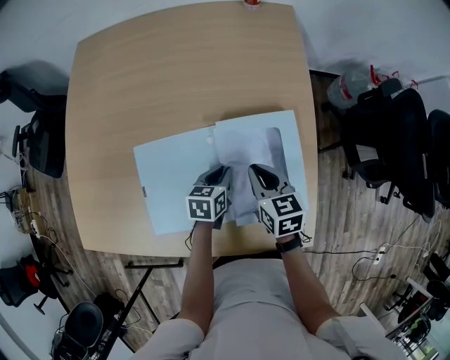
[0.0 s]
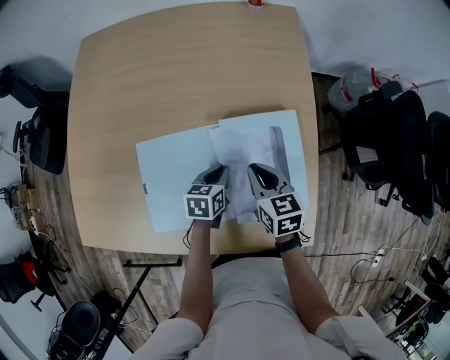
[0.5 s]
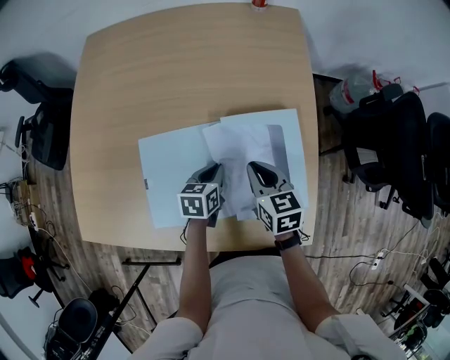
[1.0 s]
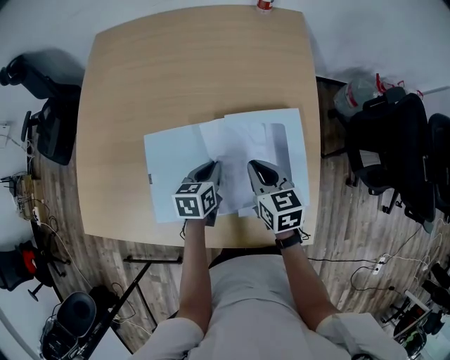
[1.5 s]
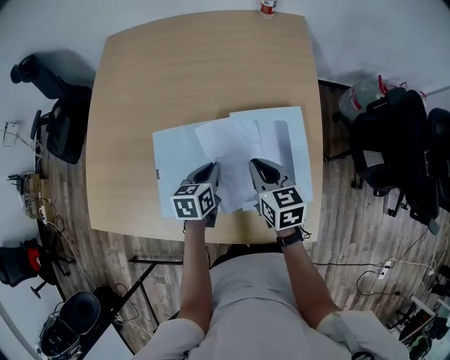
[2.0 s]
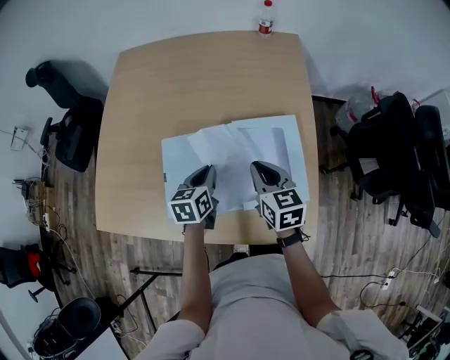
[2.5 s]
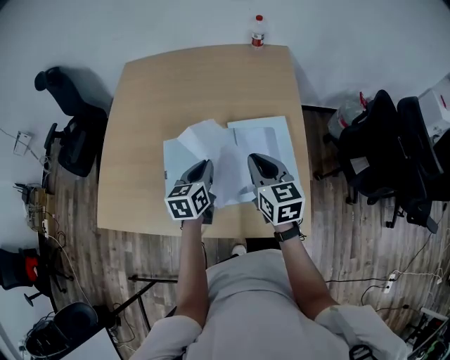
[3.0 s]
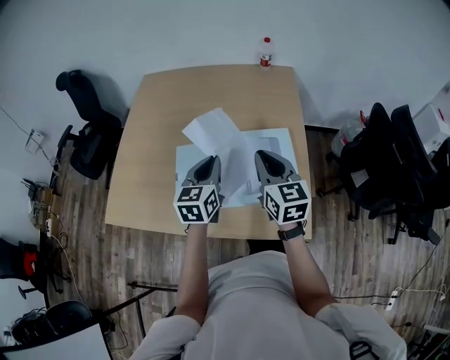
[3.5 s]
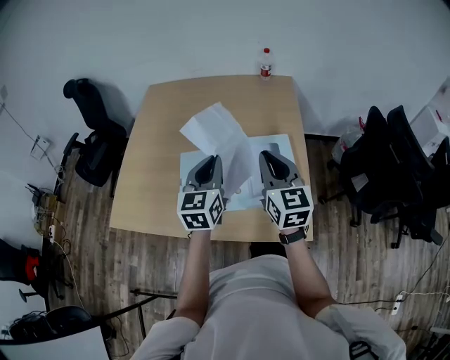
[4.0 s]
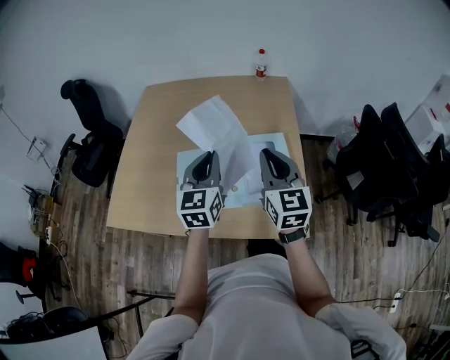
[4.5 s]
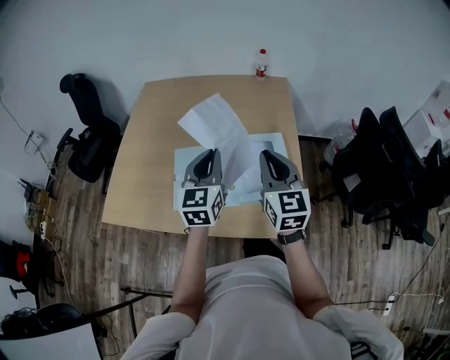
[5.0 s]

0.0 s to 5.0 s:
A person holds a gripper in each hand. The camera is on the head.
0.0 to 2.5 s: The left gripper heads upward and to the left, covering approximately 15 cm; the right gripper travels upward by approximately 10 cm.
2.5 to 5.0 s: The left gripper is displaced upward by approximately 25 cm, and points its fingers some 30 degrees further upward, while the right gripper travels upward and backward by roughly 20 cm, and rotates approximately 30 degrees.

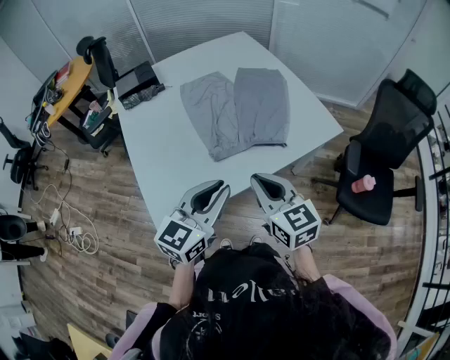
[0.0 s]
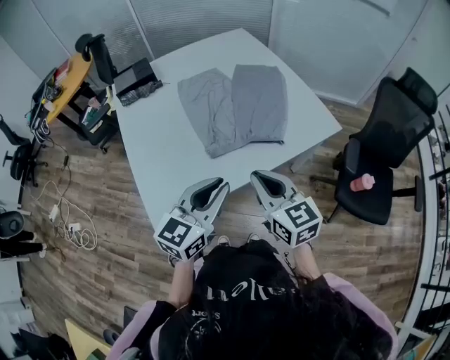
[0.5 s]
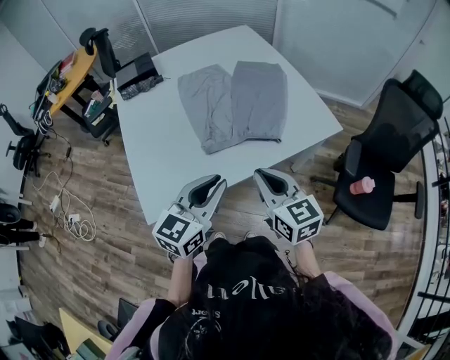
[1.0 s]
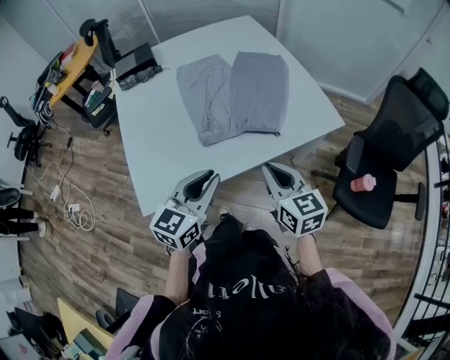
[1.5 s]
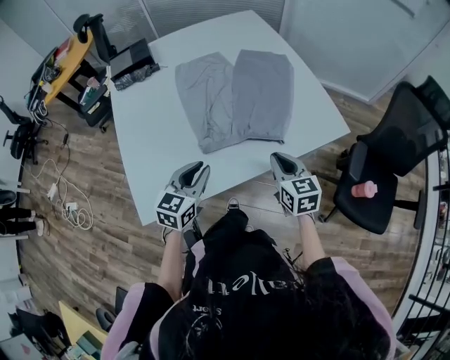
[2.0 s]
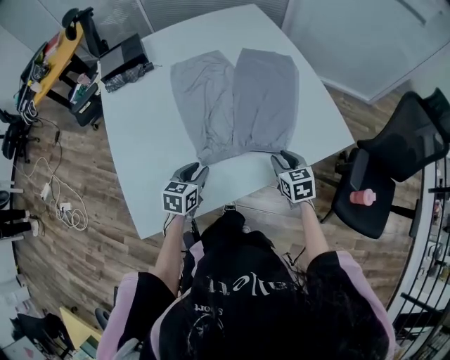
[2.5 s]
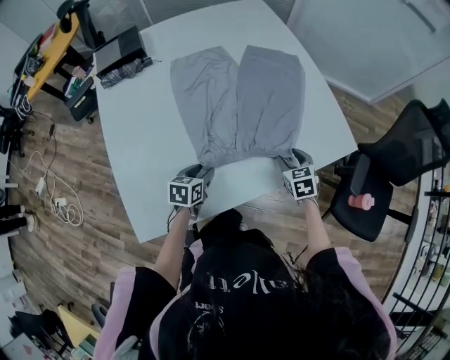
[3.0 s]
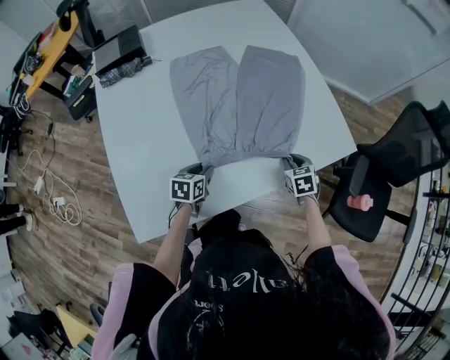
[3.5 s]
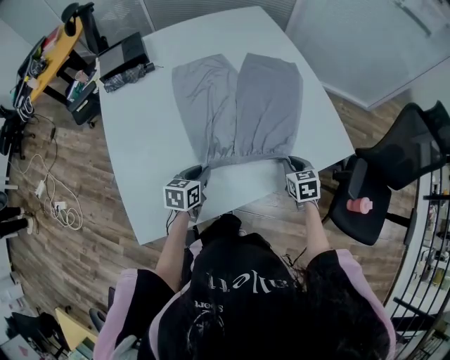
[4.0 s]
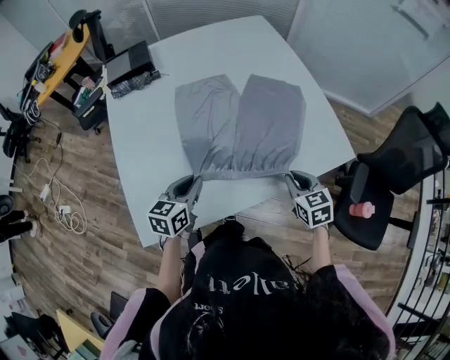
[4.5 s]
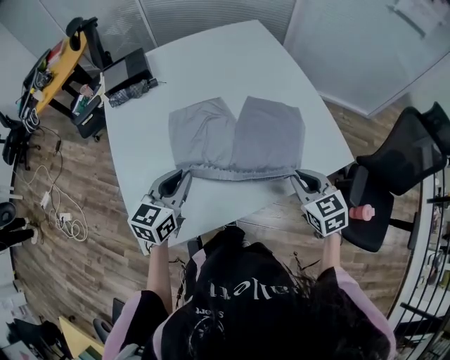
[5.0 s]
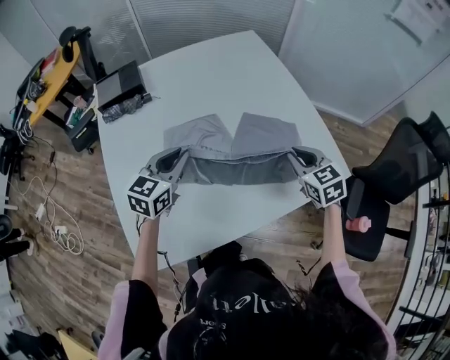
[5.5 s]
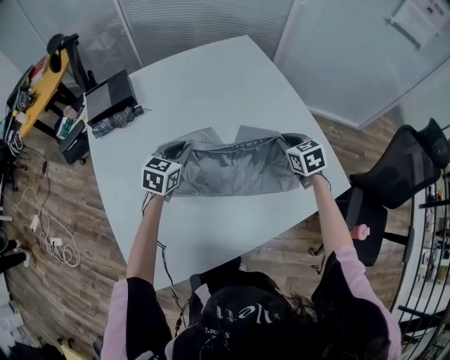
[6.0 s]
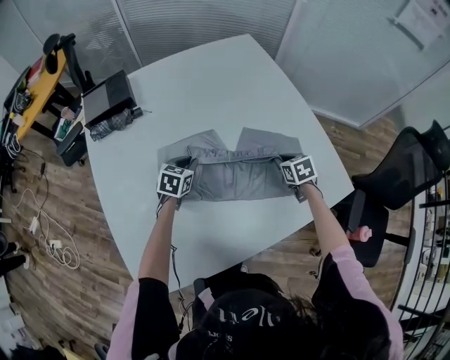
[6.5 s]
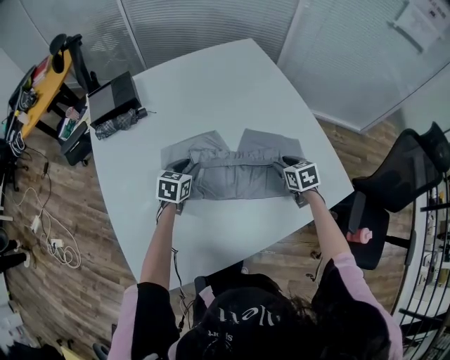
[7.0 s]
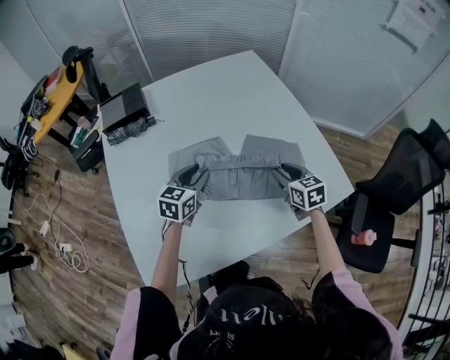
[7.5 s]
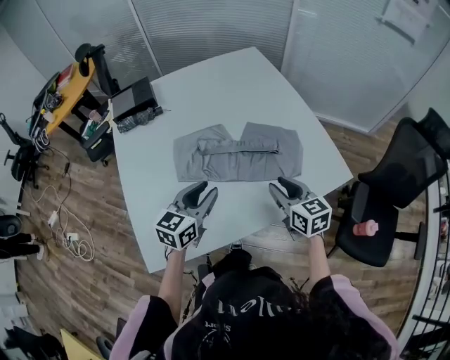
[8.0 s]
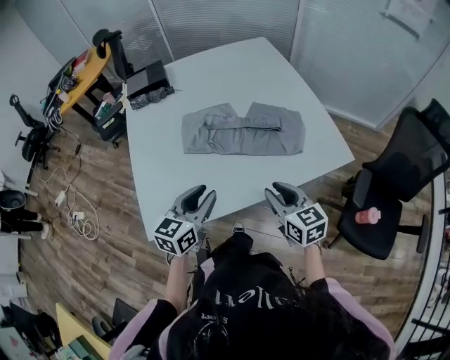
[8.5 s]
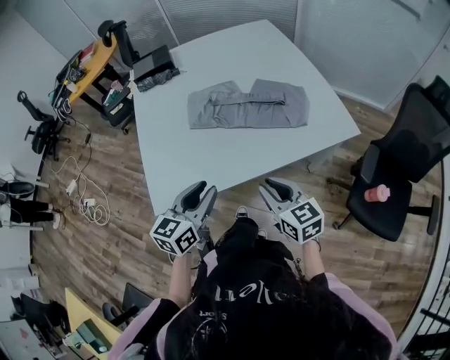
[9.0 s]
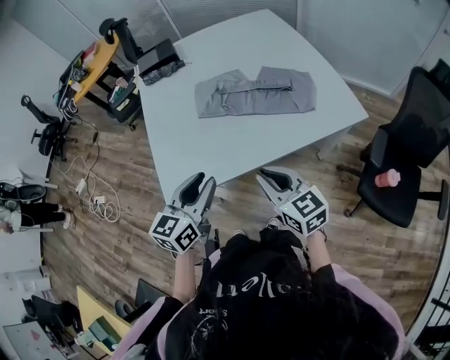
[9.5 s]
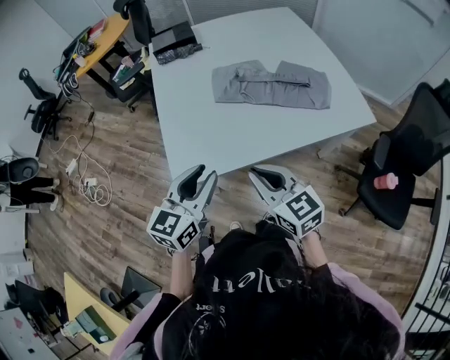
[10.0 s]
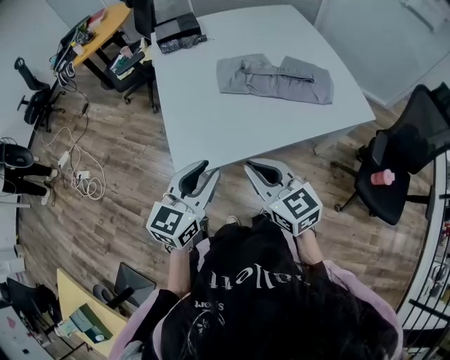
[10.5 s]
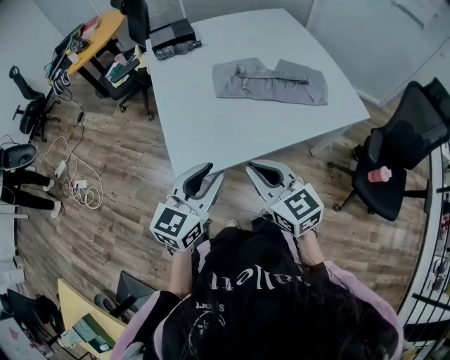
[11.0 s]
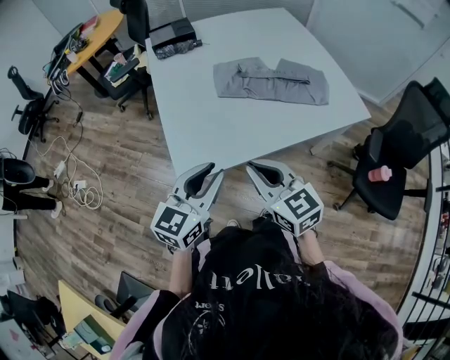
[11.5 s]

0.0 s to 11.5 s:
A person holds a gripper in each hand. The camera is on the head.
0.0 to 2.0 s: The right gripper heads downward, forward and to the right, covering about 20 cm; the left gripper goes some 15 cm downward and forward.
2.0 to 4.0 s: Both grippers travel together downward and forward, roughly 15 cm. The right gripper rotates some 20 degrees, and opens, then closes once more. The left gripper changes its angle by approximately 30 degrees, and opens and closes again.
4.0 to 6.0 s: Both grippers travel together forward, about 20 cm. The left gripper changes its angle by about 30 degrees.
6.0 to 7.5 s: Both grippers move backward, some 10 cm. The left gripper reaches roughly 10 cm downward, then returns, and opens. The right gripper moves about 10 cm downward and comes back, and opens its fingers.
7.5 to 9.5 s: Both grippers move backward, roughly 35 cm. The right gripper rotates some 30 degrees, and closes its fingers.
9.5 to 11.5 s: The left gripper heads to the left, covering roughly 10 cm. The right gripper heads to the left, covering approximately 15 cm.

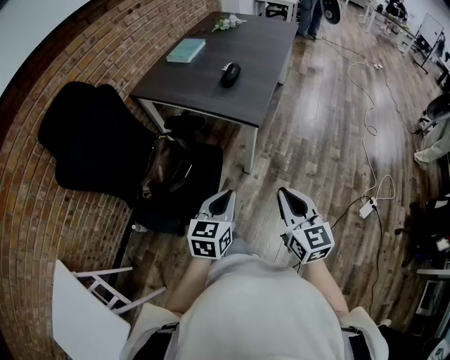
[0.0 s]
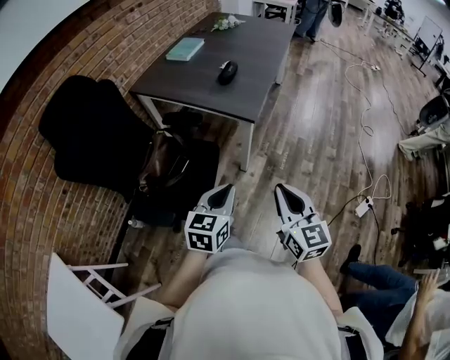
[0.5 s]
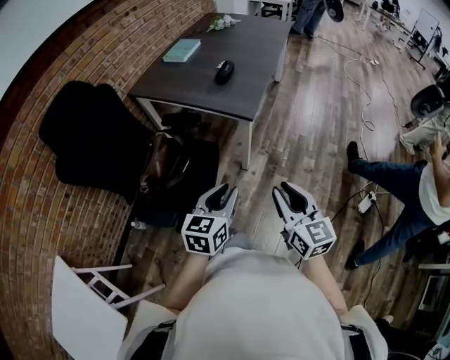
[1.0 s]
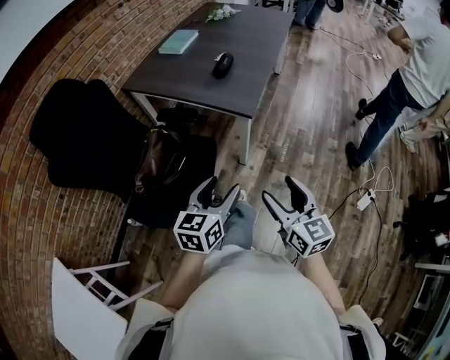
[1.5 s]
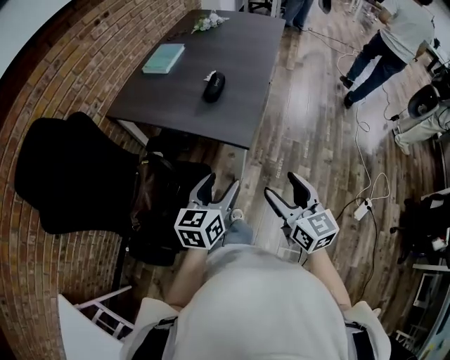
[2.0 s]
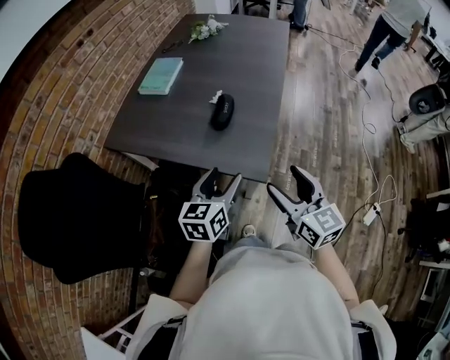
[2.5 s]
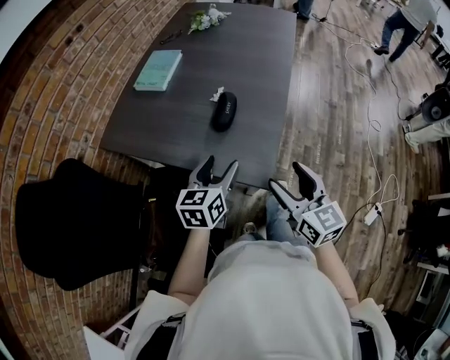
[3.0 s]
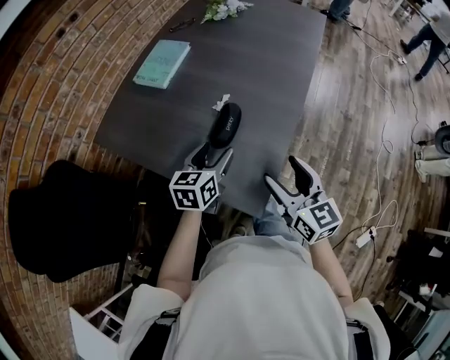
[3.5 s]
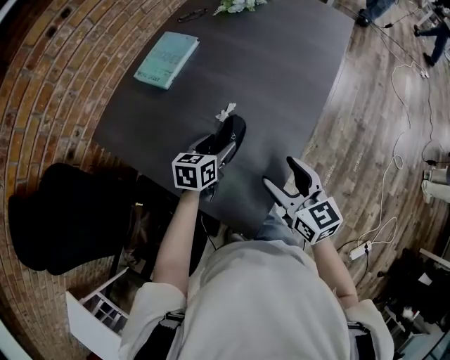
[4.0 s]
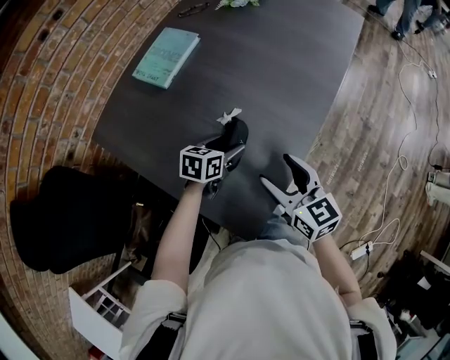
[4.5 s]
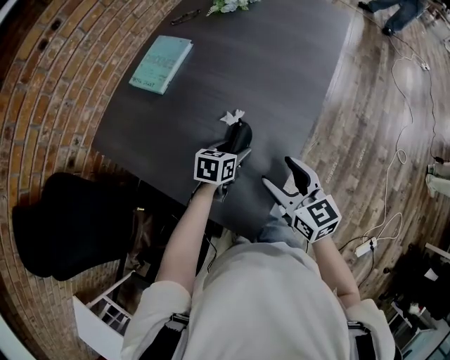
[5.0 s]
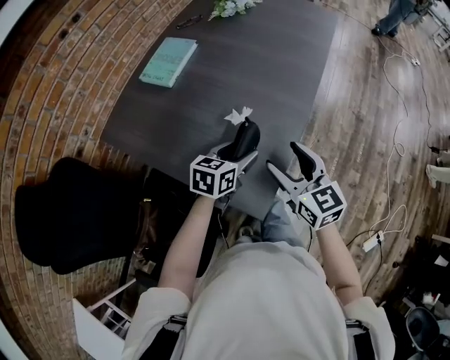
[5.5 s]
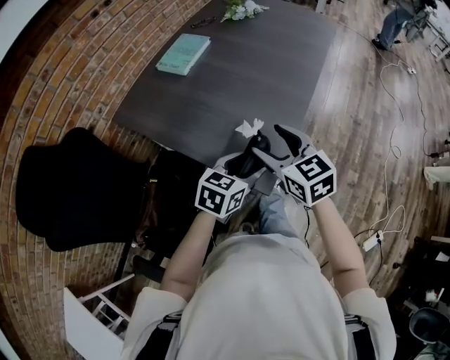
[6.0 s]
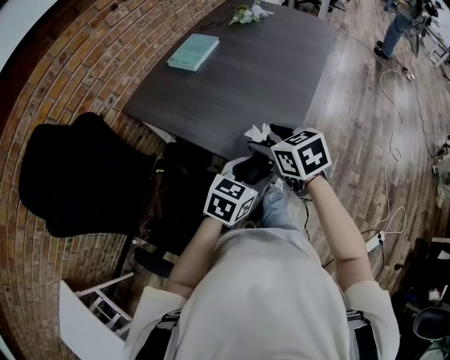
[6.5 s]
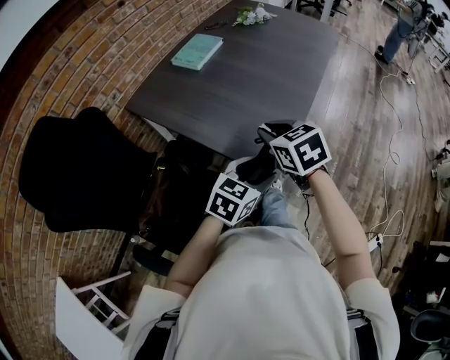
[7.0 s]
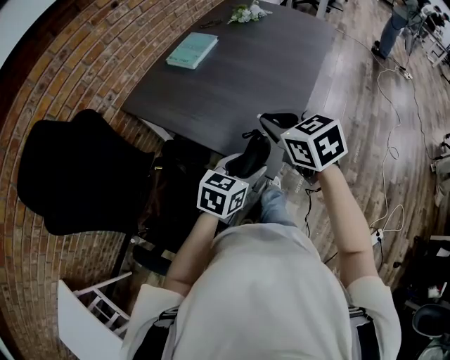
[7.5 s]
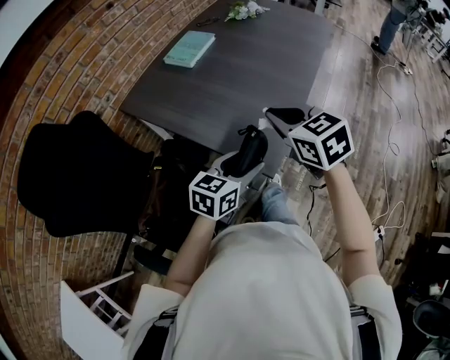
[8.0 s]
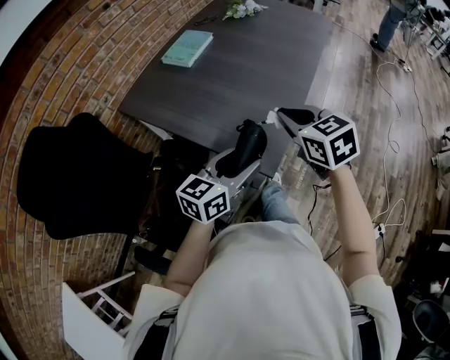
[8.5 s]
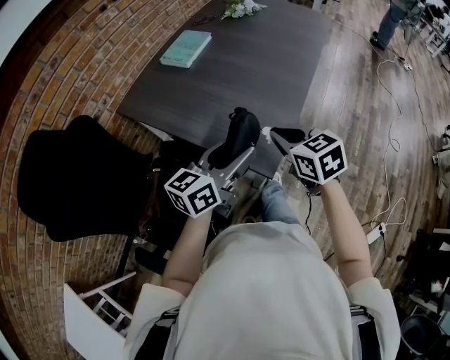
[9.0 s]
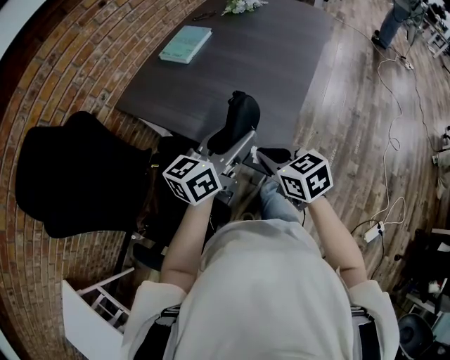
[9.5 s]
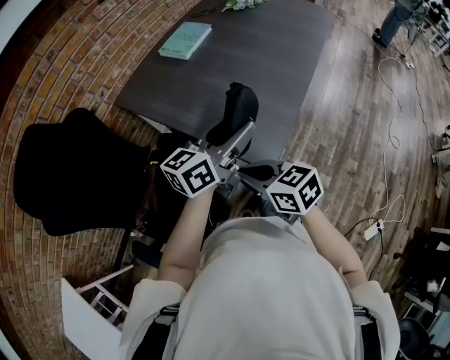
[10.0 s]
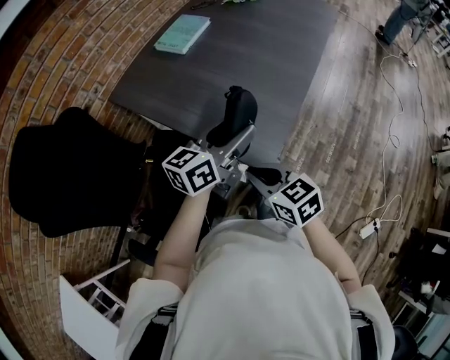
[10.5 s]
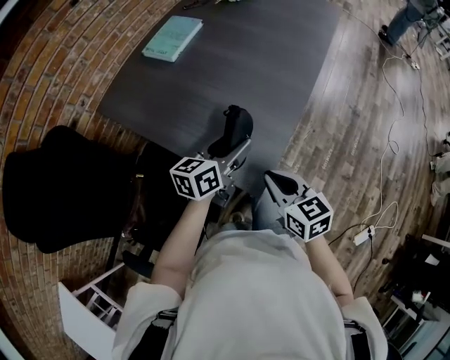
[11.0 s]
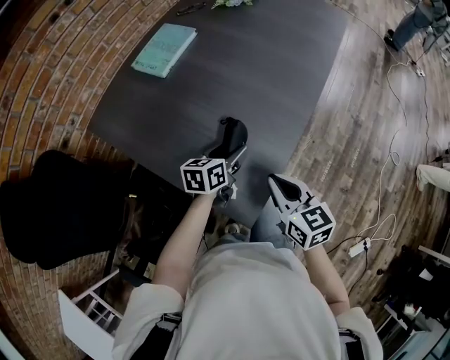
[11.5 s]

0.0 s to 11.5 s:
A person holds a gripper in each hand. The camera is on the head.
0.0 to 2.0 s: The two grippers go roughly 15 cm forward. The right gripper opens, while the left gripper opens up.
2.0 to 4.0 s: The pair of grippers is taken forward, roughly 50 cm. The left gripper swivels approximately 20 degrees.
4.0 to 6.0 s: The left gripper heads backward, covering approximately 25 cm, and turns by about 20 degrees, while the right gripper heads backward, to the left and upward, covering about 15 cm.
6.0 to 7.5 s: The left gripper shifts about 5 cm backward. Meanwhile the right gripper shifts by some 5 cm, and closes its fingers.
7.5 to 9.5 s: The left gripper shifts roughly 10 cm upward and forward, and turns by approximately 30 degrees. Meanwhile the right gripper shifts roughly 10 cm downward and backward.
9.5 to 11.5 s: The right gripper goes approximately 15 cm forward and to the right, while the left gripper travels downward and forward by about 30 cm, and points its fingers roughly 30 degrees further downward.
